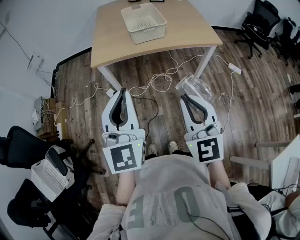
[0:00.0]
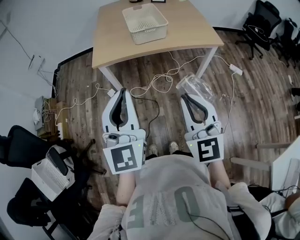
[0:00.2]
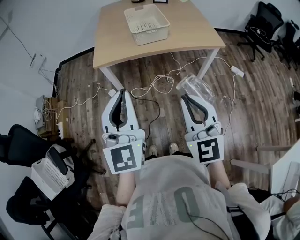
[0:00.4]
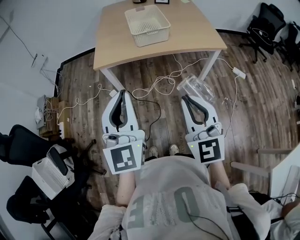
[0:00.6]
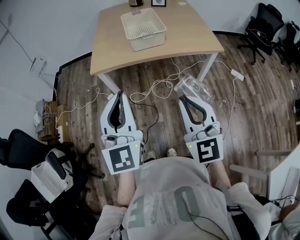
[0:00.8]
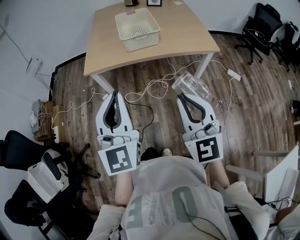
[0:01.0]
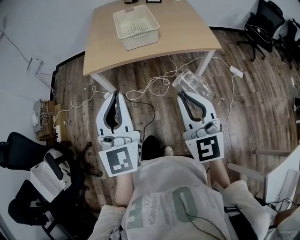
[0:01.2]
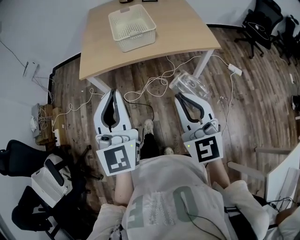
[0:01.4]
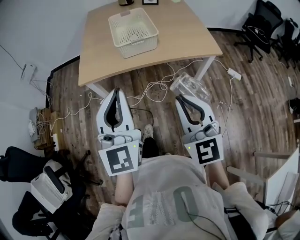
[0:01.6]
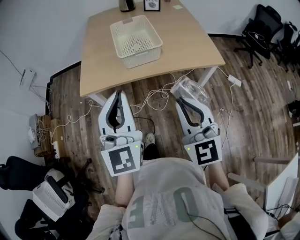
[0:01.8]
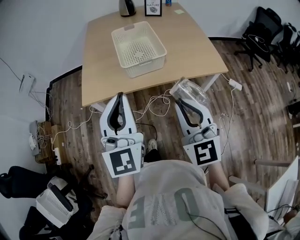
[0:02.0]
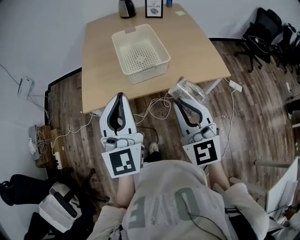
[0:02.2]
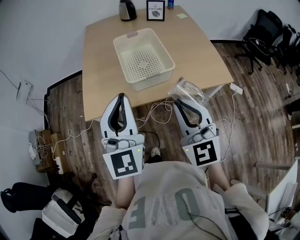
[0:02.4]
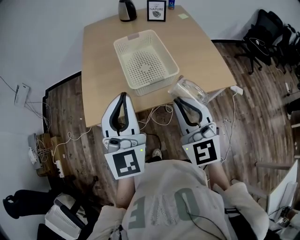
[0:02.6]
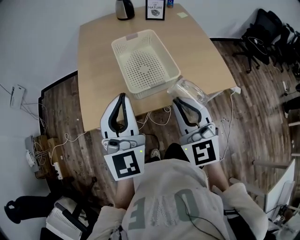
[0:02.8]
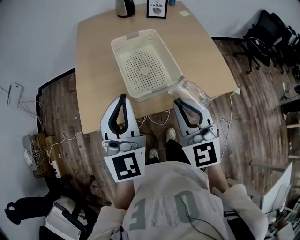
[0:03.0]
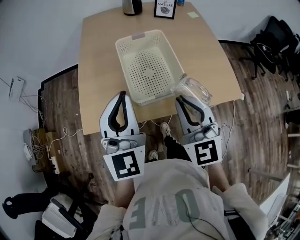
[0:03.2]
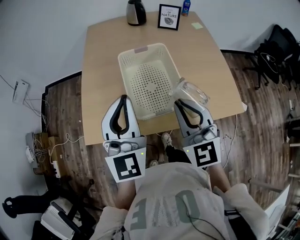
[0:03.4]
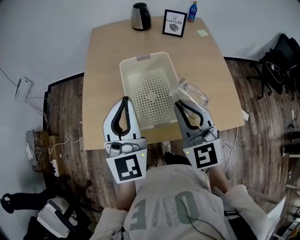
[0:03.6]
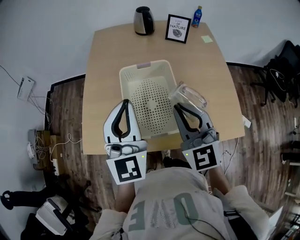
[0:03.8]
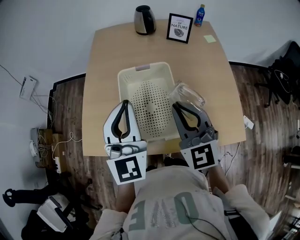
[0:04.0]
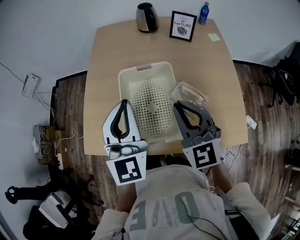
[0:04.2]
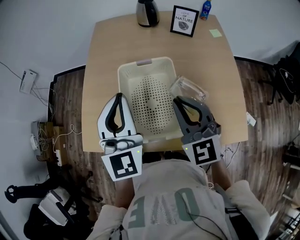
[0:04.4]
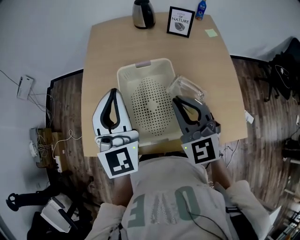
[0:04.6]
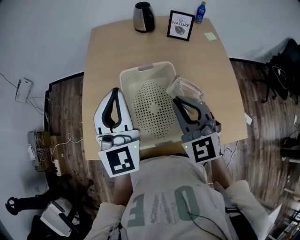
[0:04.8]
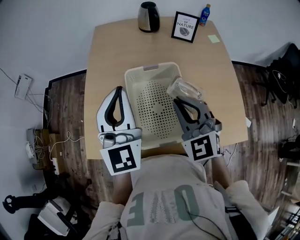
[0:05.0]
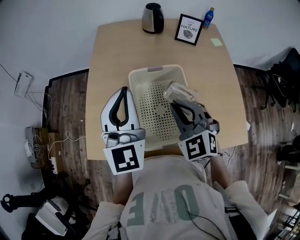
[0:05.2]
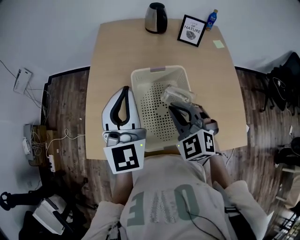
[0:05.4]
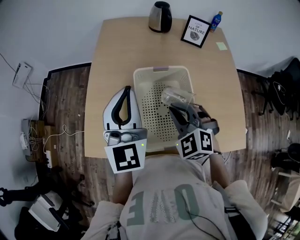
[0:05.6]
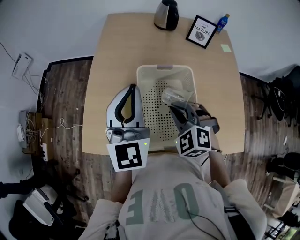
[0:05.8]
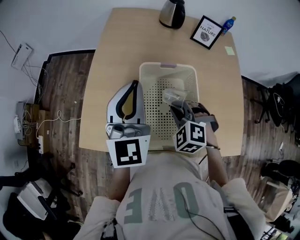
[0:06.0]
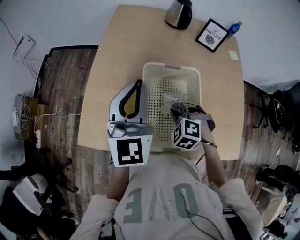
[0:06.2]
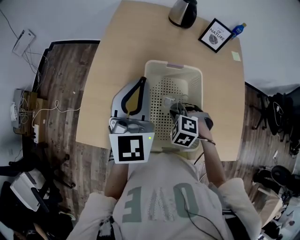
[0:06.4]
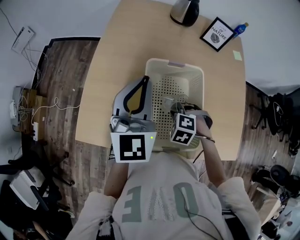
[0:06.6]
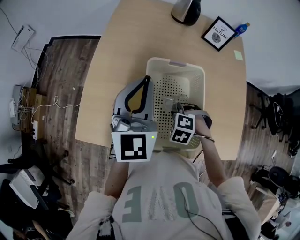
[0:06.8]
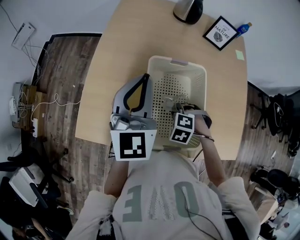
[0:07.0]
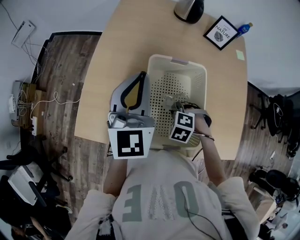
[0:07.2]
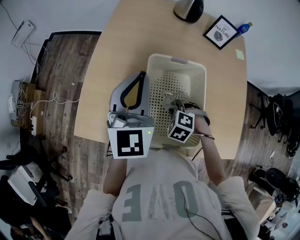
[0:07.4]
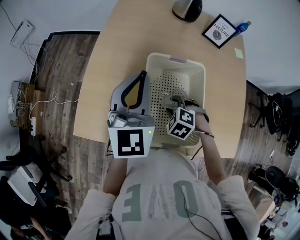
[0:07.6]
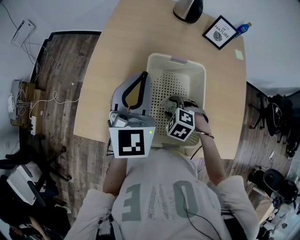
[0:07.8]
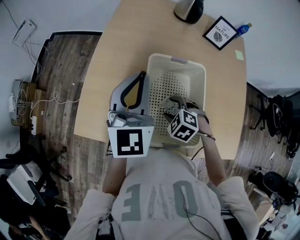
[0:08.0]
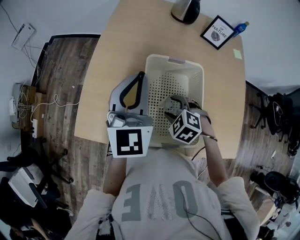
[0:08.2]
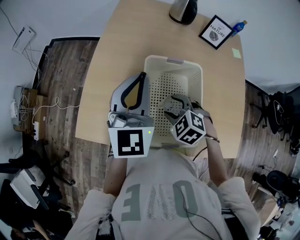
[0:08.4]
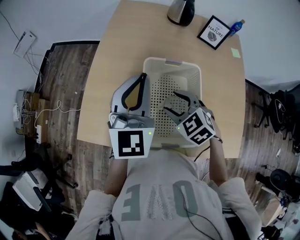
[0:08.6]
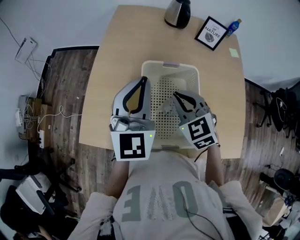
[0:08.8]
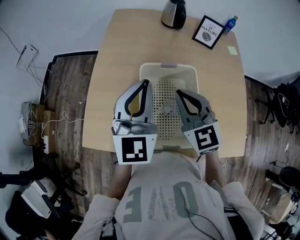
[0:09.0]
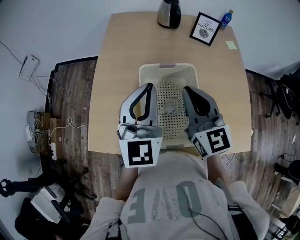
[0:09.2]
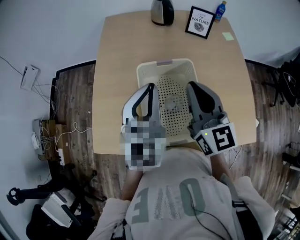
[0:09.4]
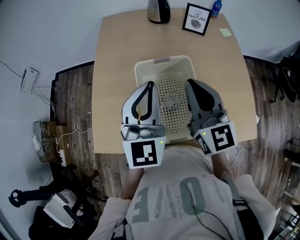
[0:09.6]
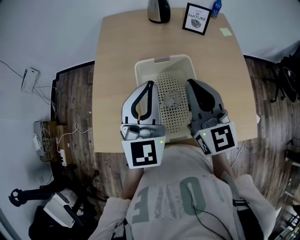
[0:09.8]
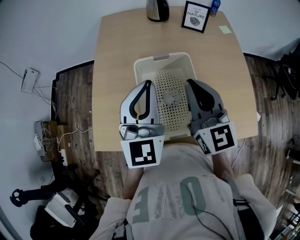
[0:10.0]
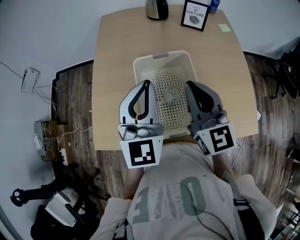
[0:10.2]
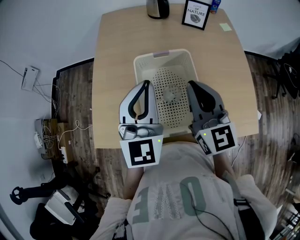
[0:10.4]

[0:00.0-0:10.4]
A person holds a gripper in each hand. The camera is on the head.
0:00.0 to 0:01.4: Both grippers travel together forward and to the right, roughly 10 cm.
0:01.4 to 0:03.0: The grippers both shift forward by approximately 35 cm.
0:03.0 to 0:04.4: The grippers both shift forward by roughly 20 cm.
0:04.4 to 0:06.0: The left gripper heads to the left and forward, covering some 10 cm. Meanwhile the right gripper moves downward and to the left, some 15 cm, and tilts its fingers roughly 40 degrees downward.
0:06.0 to 0:07.4: The right gripper moves downward, some 10 cm, and changes its angle by some 20 degrees.
0:07.4 to 0:09.0: The left gripper shifts by some 5 cm, while the right gripper heads upward, covering some 25 cm, angles its fingers upward, by approximately 60 degrees, and opens, then closes once more.
0:09.0 to 0:10.4: The left gripper changes place by roughly 5 cm. The right gripper moves to the right, about 5 cm, and changes its angle by roughly 30 degrees.

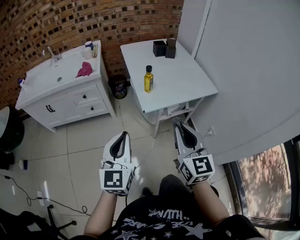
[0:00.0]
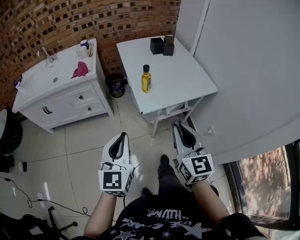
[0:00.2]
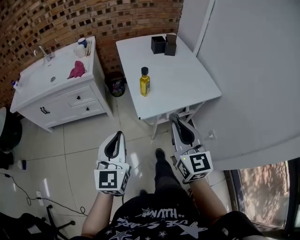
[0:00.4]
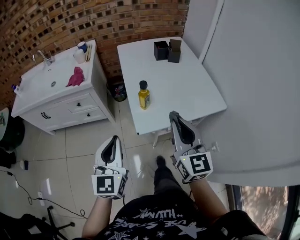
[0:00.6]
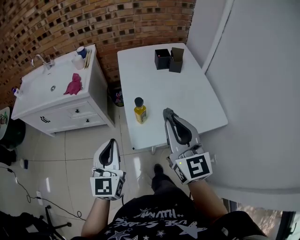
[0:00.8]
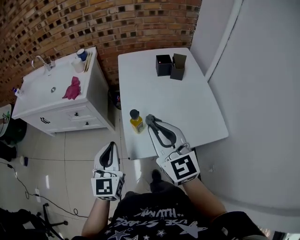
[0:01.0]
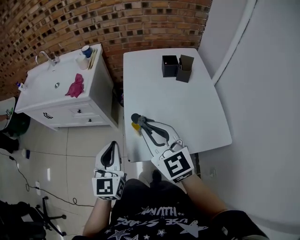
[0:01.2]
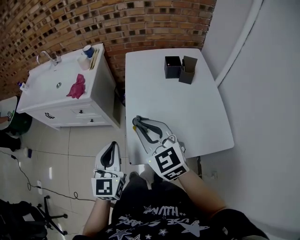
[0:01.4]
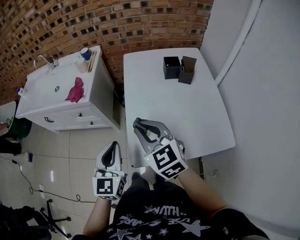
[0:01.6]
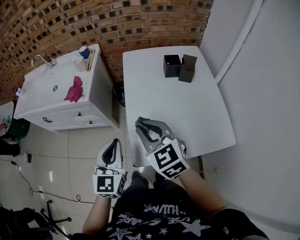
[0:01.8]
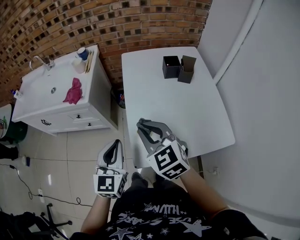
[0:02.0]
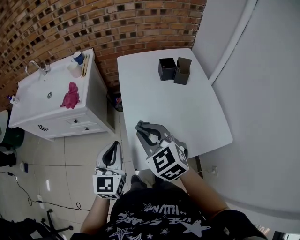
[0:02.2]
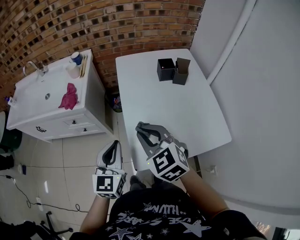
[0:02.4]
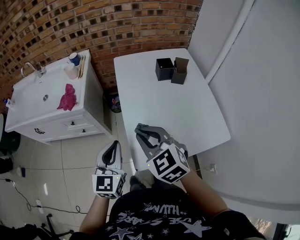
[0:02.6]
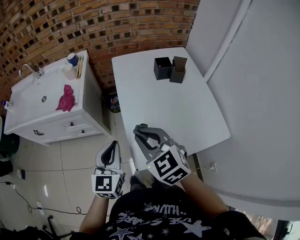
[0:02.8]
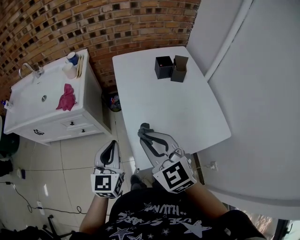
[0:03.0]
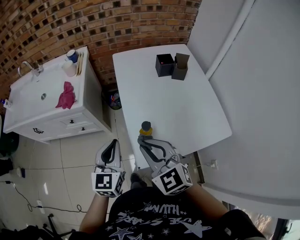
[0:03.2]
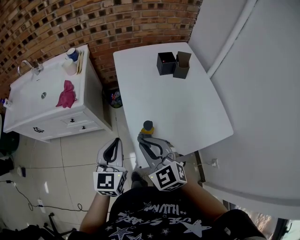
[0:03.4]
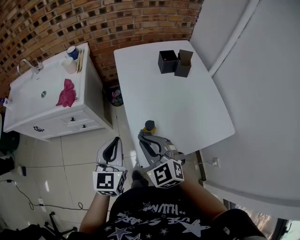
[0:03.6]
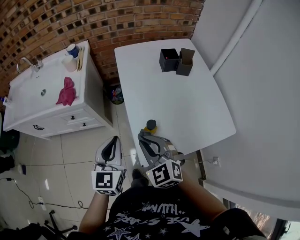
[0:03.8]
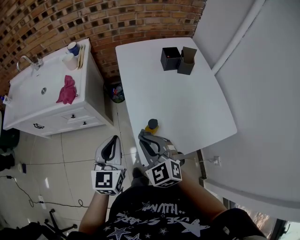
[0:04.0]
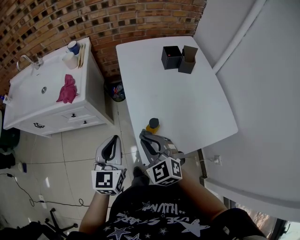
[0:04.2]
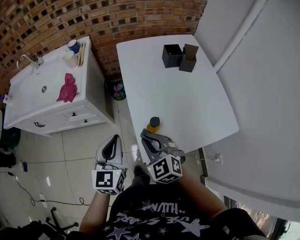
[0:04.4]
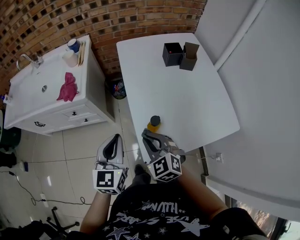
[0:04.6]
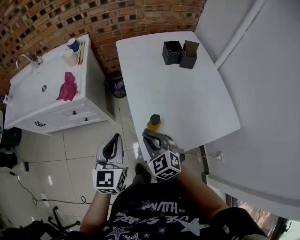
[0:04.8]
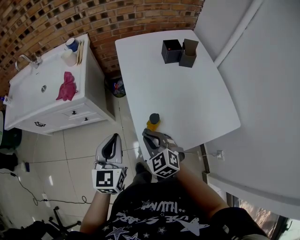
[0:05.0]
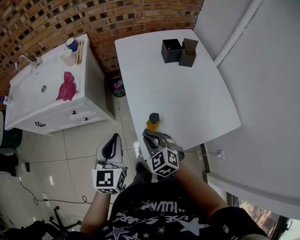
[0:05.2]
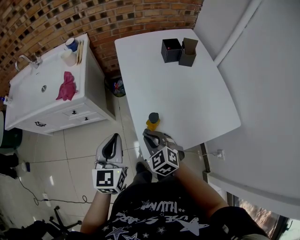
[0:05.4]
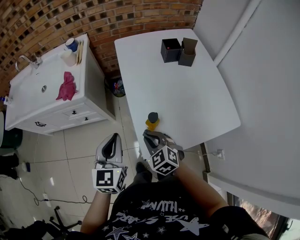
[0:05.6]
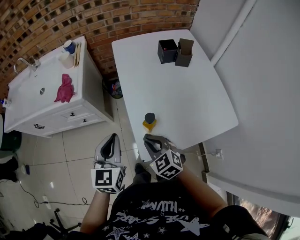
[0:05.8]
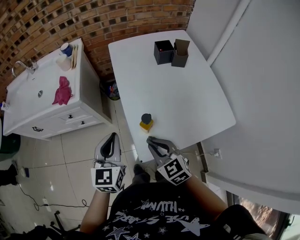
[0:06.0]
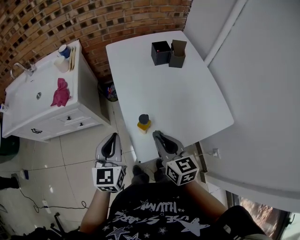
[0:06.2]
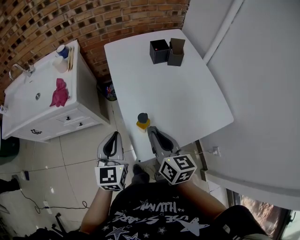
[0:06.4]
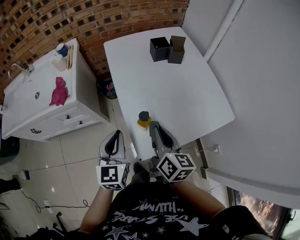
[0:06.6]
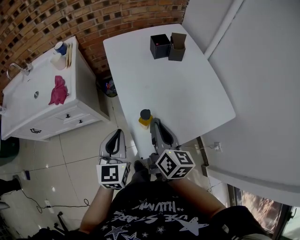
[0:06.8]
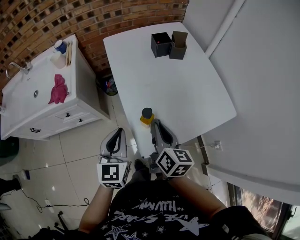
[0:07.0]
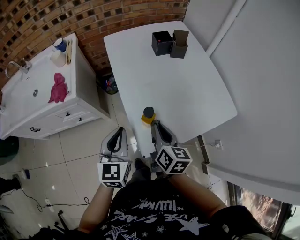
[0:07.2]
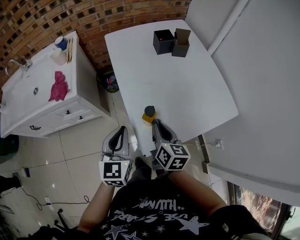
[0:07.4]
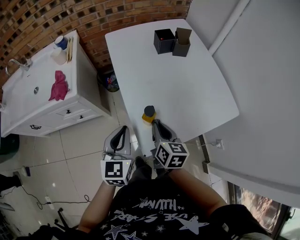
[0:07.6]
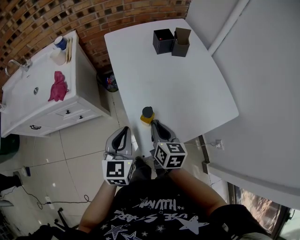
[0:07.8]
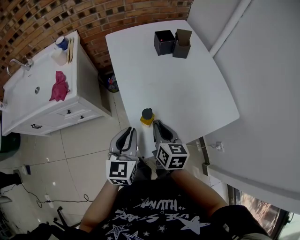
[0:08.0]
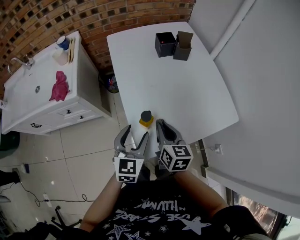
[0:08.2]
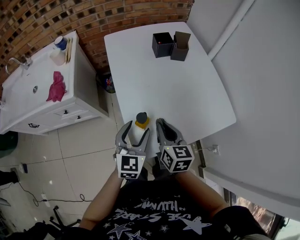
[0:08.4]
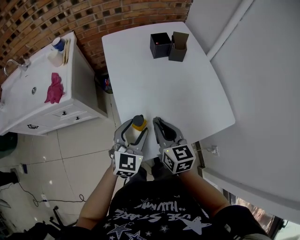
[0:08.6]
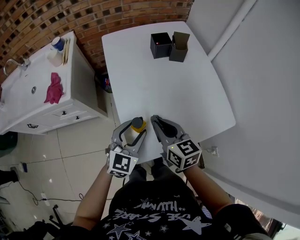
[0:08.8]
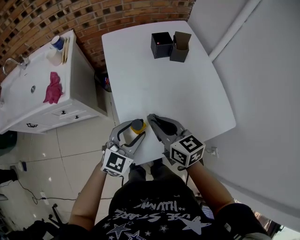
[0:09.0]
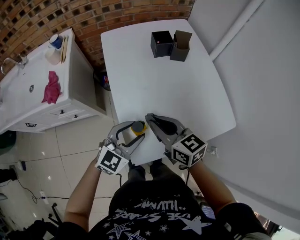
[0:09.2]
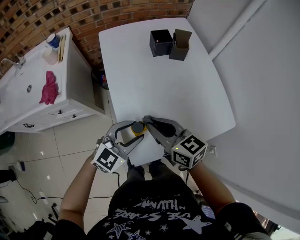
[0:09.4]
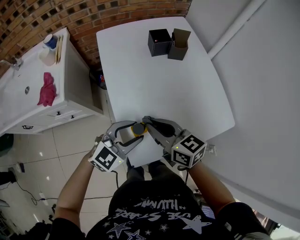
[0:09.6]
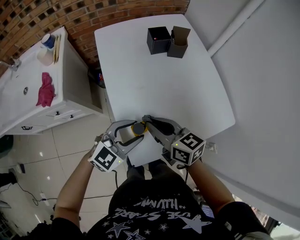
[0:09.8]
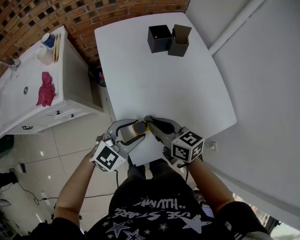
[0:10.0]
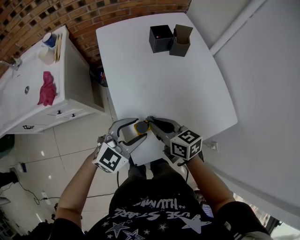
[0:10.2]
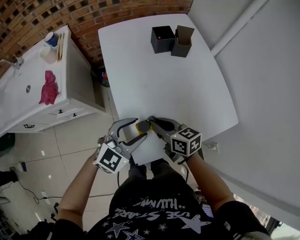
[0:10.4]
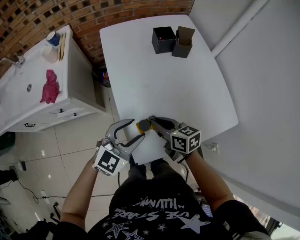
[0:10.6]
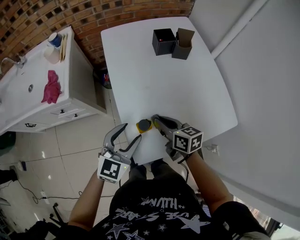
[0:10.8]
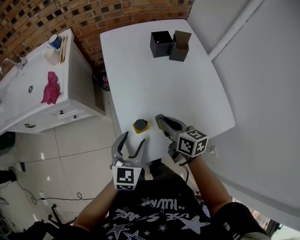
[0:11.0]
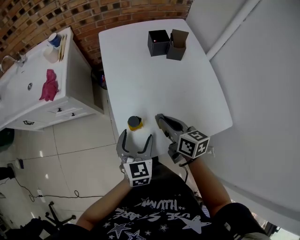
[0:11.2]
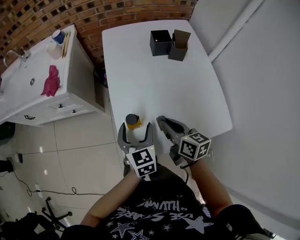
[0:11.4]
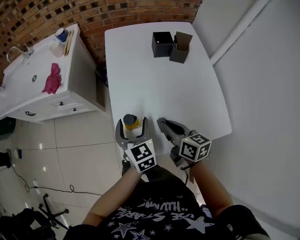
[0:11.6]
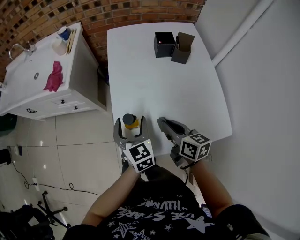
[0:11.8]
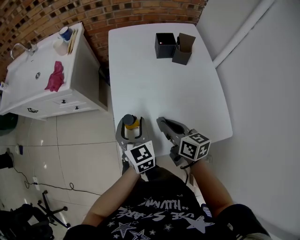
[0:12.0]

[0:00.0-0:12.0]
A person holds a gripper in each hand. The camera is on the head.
0:00.0 to 0:01.6: The right gripper ends up roughly 35 cm from where it was, and changes its angle by about 40 degrees. The left gripper moves roughly 30 cm.
0:01.6 to 0:03.0: The left gripper shifts by approximately 5 cm.
0:03.0 to 0:04.4: The right gripper travels downward by approximately 15 cm.
0:04.4 to 0:06.0: The right gripper moves approximately 5 cm.
0:06.0 to 0:07.6: The right gripper is displaced forward by approximately 5 cm, goes upward and returns, approximately 5 cm each way, and twists roughly 50 degrees clockwise, seen from behind.
0:07.6 to 0:09.0: The right gripper moves upward, some 5 cm, and rotates approximately 30 degrees. Meanwhile the left gripper is displaced to the right by some 10 cm, rotates some 30 degrees, and opens up.
0:09.0 to 0:10.4: The right gripper shifts roughly 5 cm downward.
0:10.4 to 0:12.0: The left gripper rotates approximately 70 degrees. Meanwhile the right gripper shifts by approximately 10 cm.

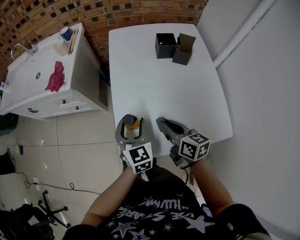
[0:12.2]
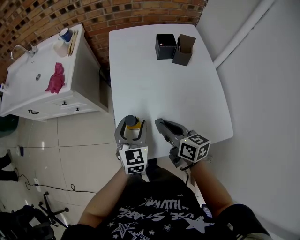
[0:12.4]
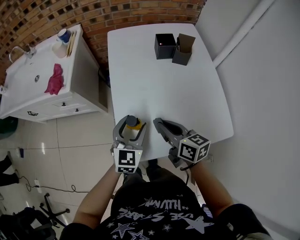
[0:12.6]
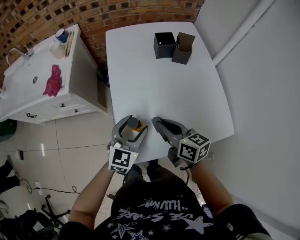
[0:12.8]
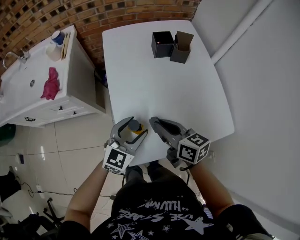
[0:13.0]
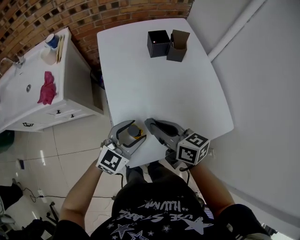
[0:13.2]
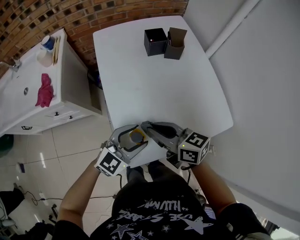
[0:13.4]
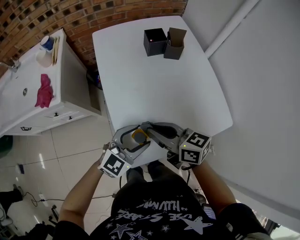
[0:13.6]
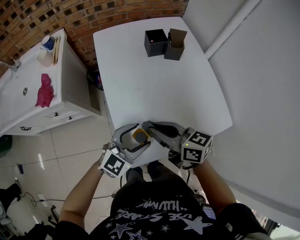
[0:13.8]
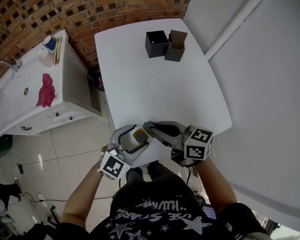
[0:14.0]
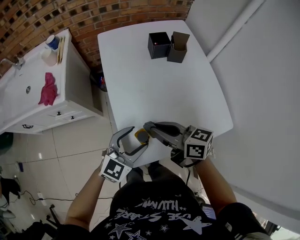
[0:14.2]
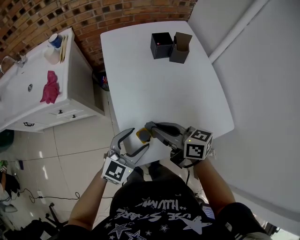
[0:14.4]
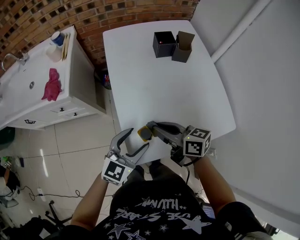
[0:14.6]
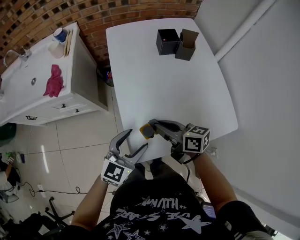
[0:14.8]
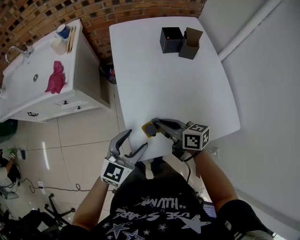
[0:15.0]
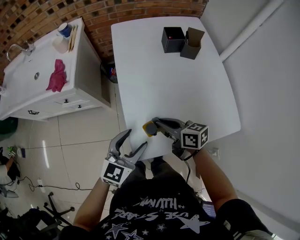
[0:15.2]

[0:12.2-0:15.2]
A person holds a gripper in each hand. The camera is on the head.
0:12.2 to 0:13.8: The right gripper goes roughly 5 cm upward, while the left gripper changes place by approximately 5 cm, and rotates approximately 60 degrees.
0:13.8 to 0:15.2: The left gripper goes approximately 5 cm to the left, and swivels approximately 30 degrees, while the right gripper moves downward, about 10 cm.
